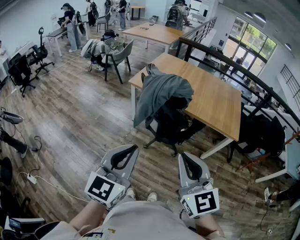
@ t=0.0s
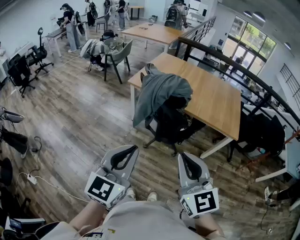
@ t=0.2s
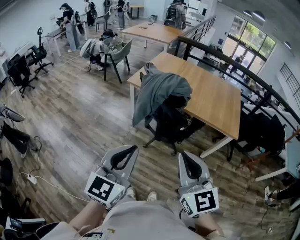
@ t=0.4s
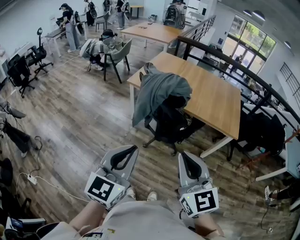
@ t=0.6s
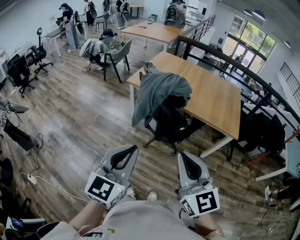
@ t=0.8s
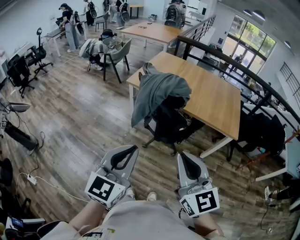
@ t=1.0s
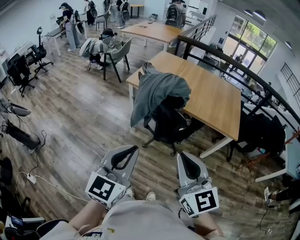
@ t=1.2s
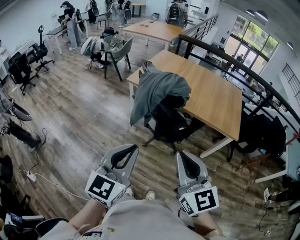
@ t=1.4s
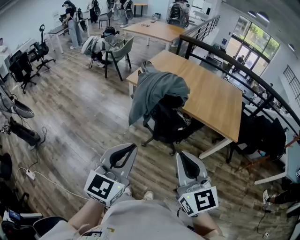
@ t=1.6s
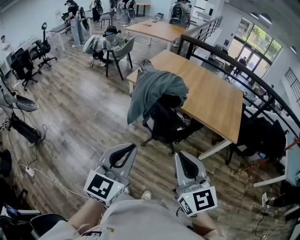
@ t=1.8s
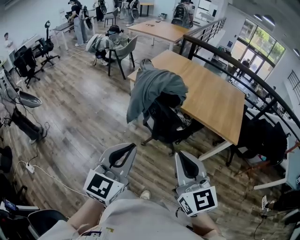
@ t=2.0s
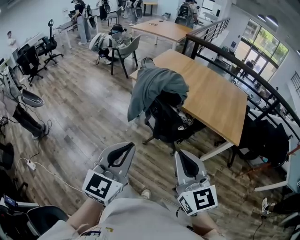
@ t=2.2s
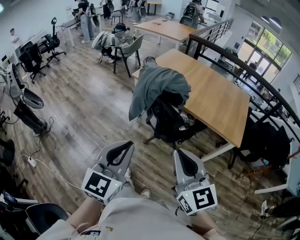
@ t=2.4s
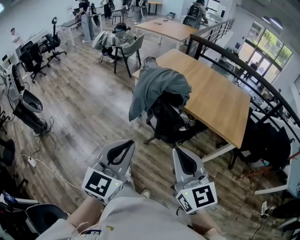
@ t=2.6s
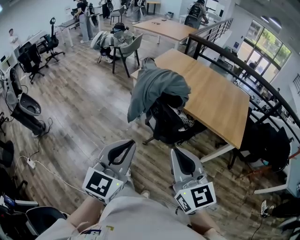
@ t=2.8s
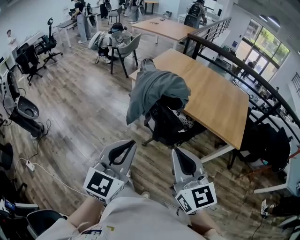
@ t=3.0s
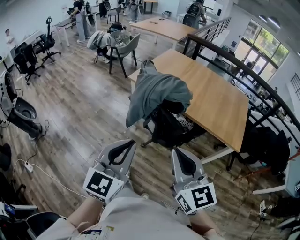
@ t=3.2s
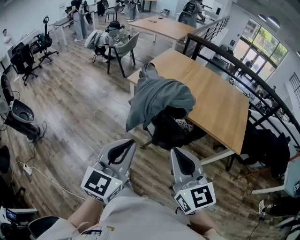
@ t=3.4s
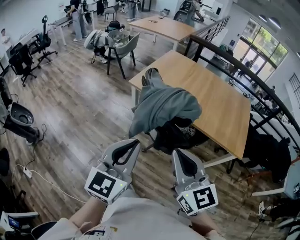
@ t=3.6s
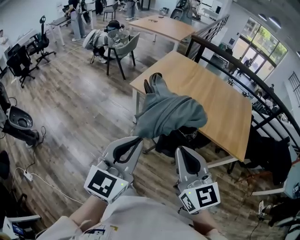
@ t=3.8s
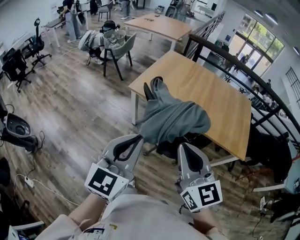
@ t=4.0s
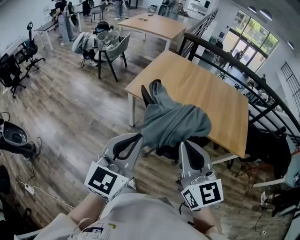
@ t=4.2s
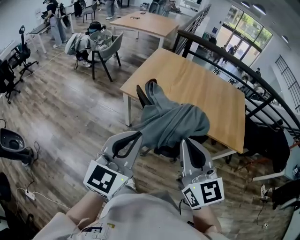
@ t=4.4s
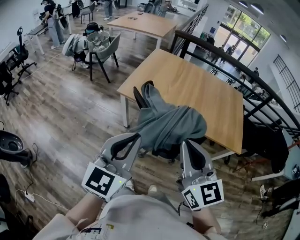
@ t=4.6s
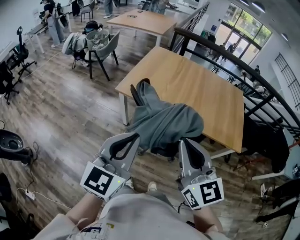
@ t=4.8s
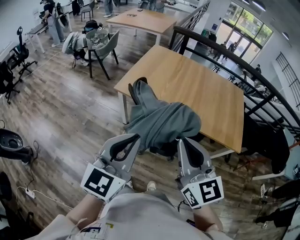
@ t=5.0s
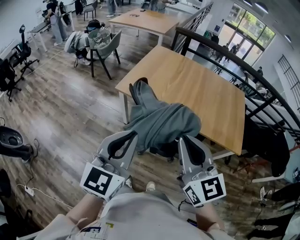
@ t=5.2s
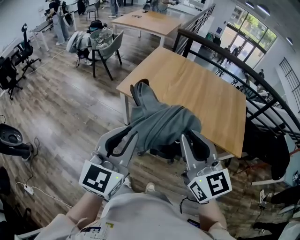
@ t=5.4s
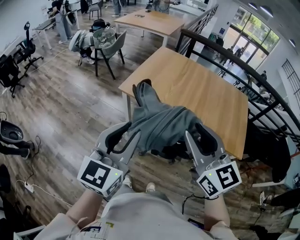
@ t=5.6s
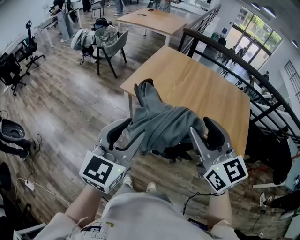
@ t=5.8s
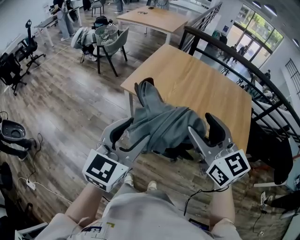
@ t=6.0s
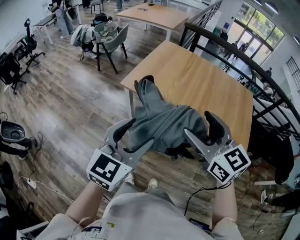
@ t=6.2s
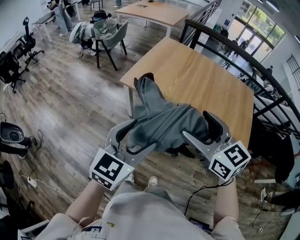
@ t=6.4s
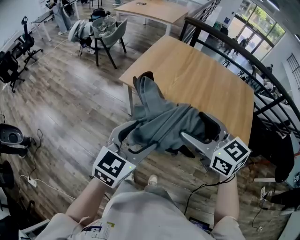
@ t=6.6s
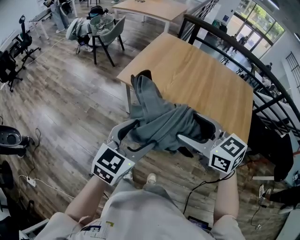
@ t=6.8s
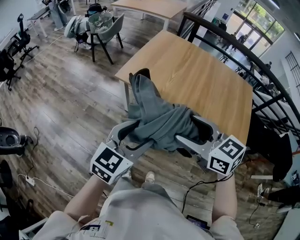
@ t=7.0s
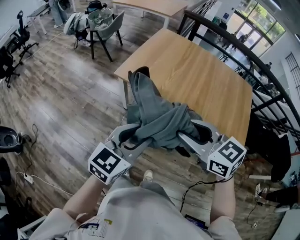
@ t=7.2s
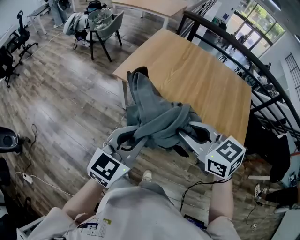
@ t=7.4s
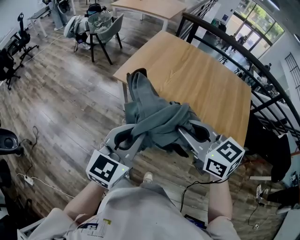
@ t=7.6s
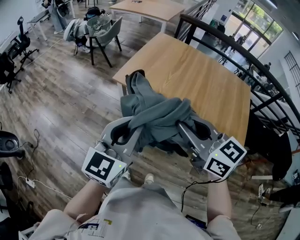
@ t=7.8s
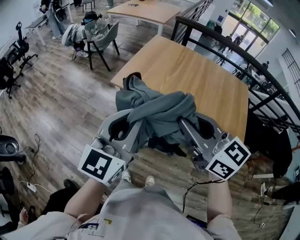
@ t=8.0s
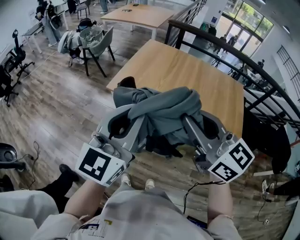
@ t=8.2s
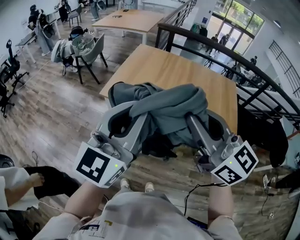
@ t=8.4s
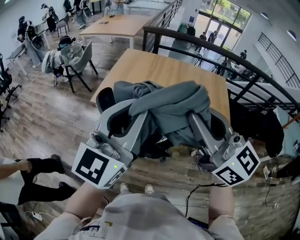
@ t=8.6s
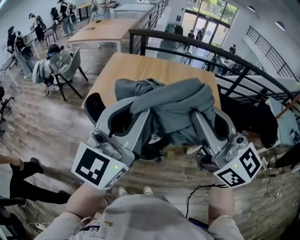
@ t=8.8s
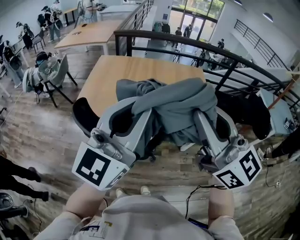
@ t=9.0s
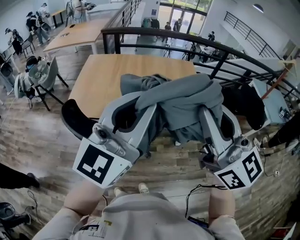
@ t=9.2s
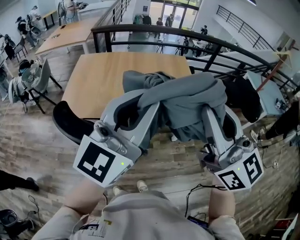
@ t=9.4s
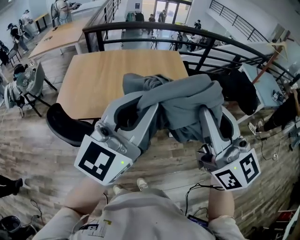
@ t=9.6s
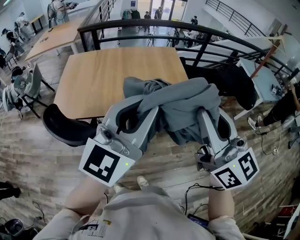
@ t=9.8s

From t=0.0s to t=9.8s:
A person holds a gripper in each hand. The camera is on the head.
From t=0.0s to t=1.4s: There are only small adjustments of the grippers.
From t=1.4s to t=2.8s: The left gripper heads to the right, covering about 5 cm; the right gripper moves some 5 cm.
From t=2.8s to t=4.2s: The two grippers go approximately 30 cm forward and to the left.
From t=4.2s to t=5.6s: The right gripper shifts roughly 10 cm forward and to the right, and opens its fingers; the left gripper heads forward, covering approximately 5 cm.
From t=5.6s to t=7.0s: The right gripper moves downward and forward, roughly 10 cm, changes its angle by approximately 30 degrees, and opens its fingers, while the left gripper moves downward, to the right and forward, some 15 cm, changes its angle by approximately 20 degrees, and opens its fingers.
From t=7.0s to t=8.4s: The left gripper travels upward by roughly 20 cm, turns by approximately 30 degrees, and closes up, while the right gripper goes some 15 cm upward and to the right, changes its angle by approximately 30 degrees, and closes its fingers.
From t=8.4s to t=9.8s: The left gripper ends up approximately 30 cm from where it was, and rotates some 30 degrees. The right gripper moves about 30 cm, and swivels some 40 degrees.

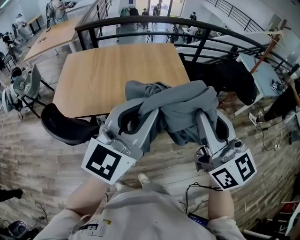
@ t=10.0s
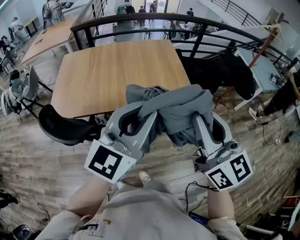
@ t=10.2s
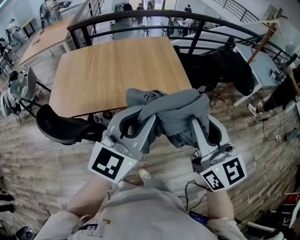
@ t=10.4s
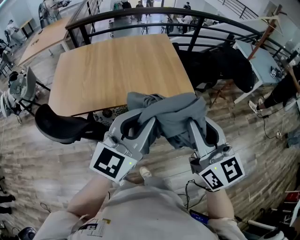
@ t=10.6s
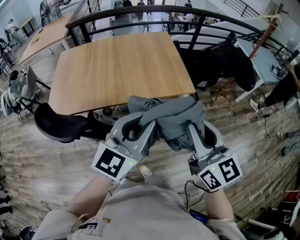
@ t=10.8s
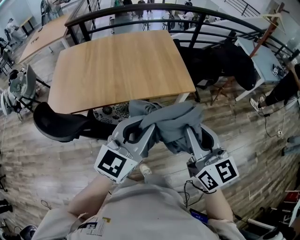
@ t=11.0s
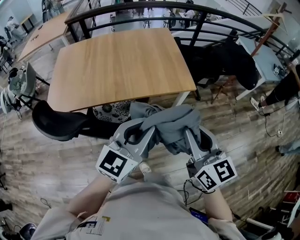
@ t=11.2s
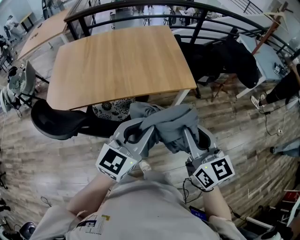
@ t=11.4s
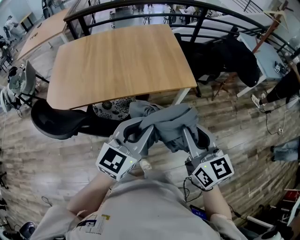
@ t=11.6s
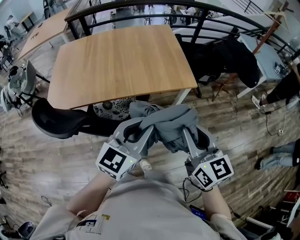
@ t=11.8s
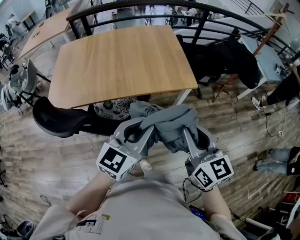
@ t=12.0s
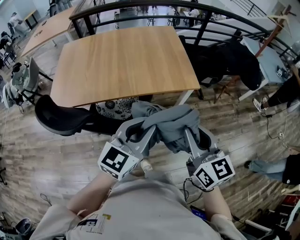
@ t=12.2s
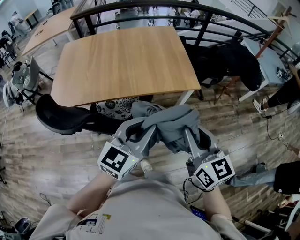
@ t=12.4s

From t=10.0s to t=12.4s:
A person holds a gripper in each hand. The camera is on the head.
From t=10.0s to t=11.2s: The two grippers go about 15 cm downward.
From t=11.2s to t=12.4s: There are only small adjustments of the grippers.

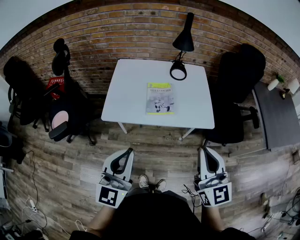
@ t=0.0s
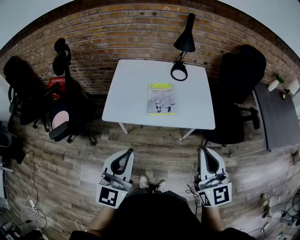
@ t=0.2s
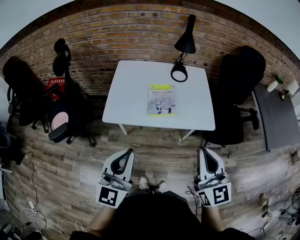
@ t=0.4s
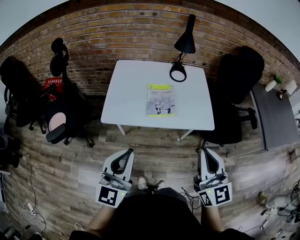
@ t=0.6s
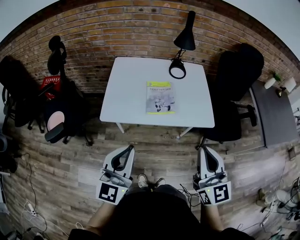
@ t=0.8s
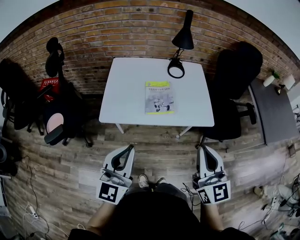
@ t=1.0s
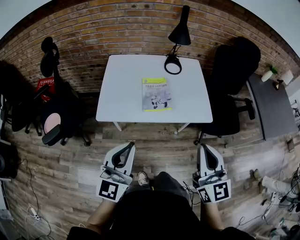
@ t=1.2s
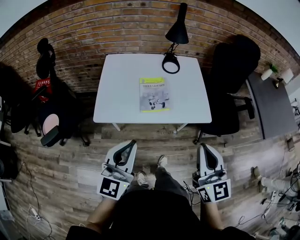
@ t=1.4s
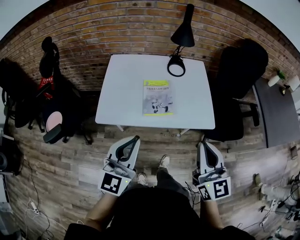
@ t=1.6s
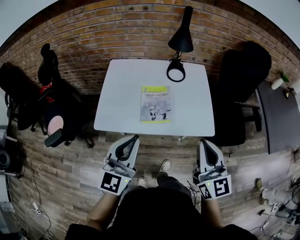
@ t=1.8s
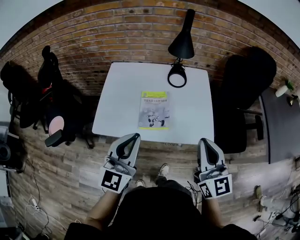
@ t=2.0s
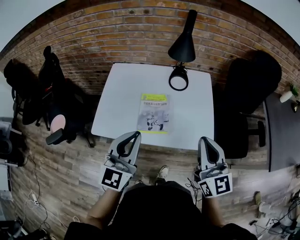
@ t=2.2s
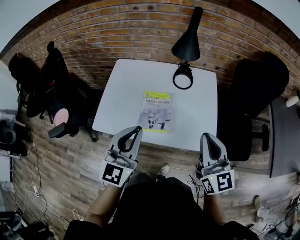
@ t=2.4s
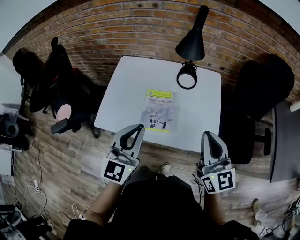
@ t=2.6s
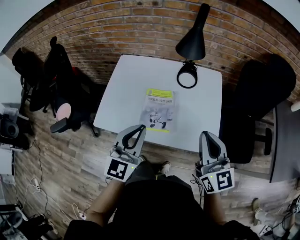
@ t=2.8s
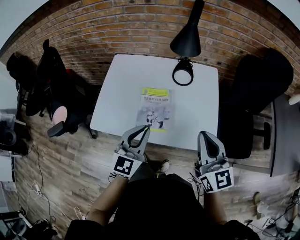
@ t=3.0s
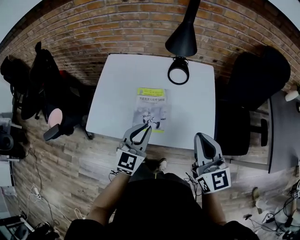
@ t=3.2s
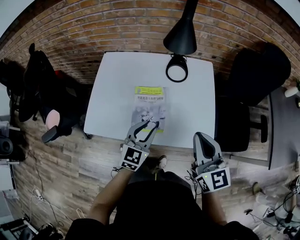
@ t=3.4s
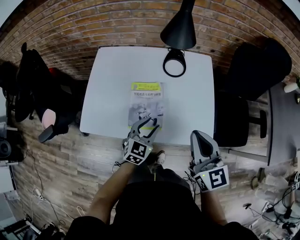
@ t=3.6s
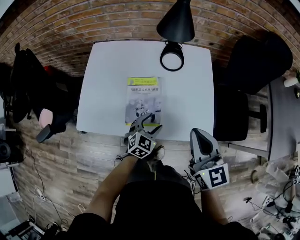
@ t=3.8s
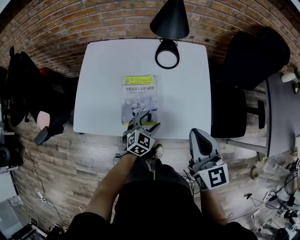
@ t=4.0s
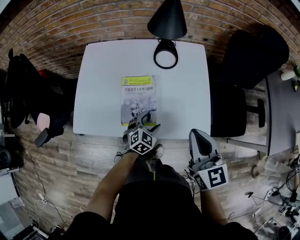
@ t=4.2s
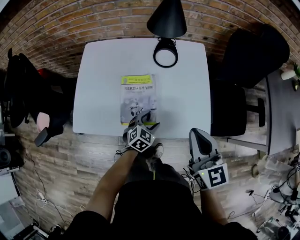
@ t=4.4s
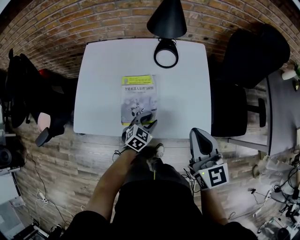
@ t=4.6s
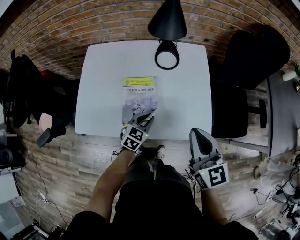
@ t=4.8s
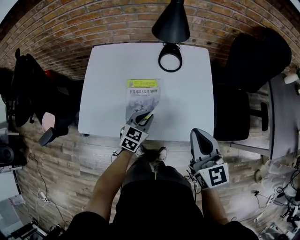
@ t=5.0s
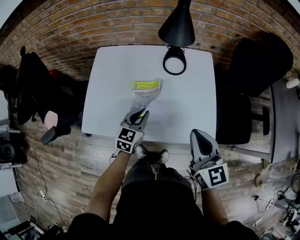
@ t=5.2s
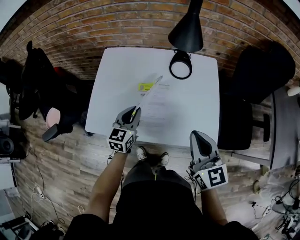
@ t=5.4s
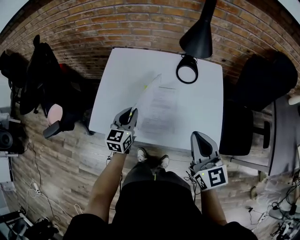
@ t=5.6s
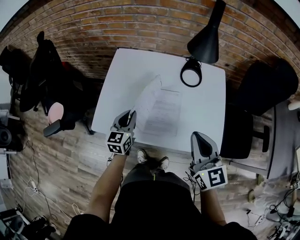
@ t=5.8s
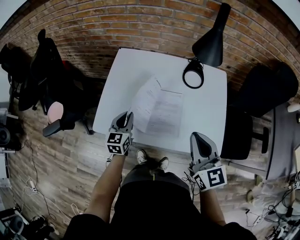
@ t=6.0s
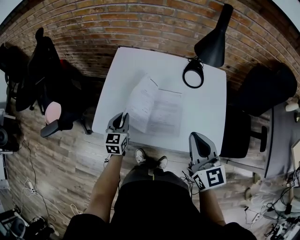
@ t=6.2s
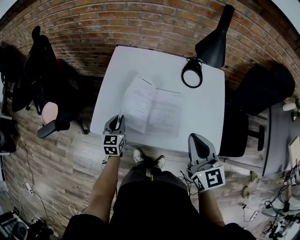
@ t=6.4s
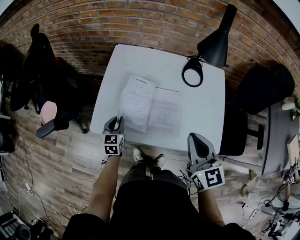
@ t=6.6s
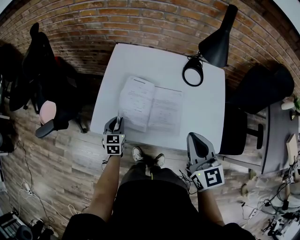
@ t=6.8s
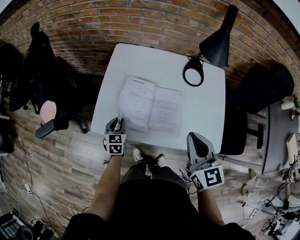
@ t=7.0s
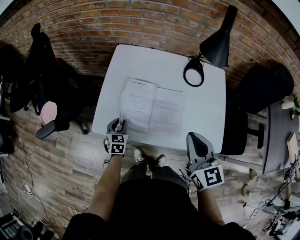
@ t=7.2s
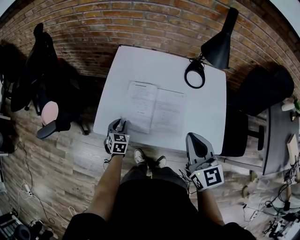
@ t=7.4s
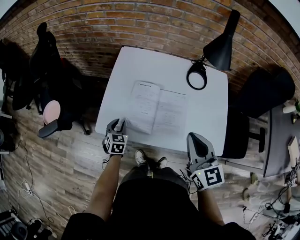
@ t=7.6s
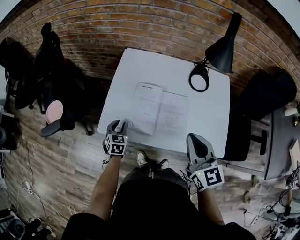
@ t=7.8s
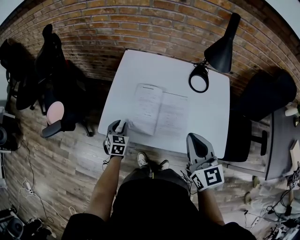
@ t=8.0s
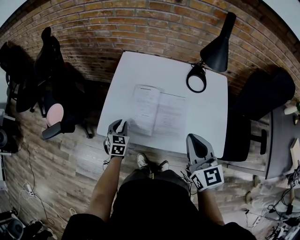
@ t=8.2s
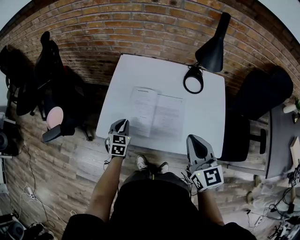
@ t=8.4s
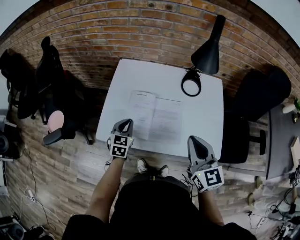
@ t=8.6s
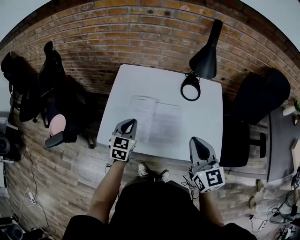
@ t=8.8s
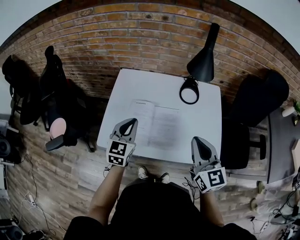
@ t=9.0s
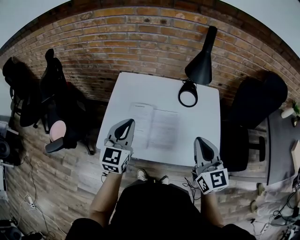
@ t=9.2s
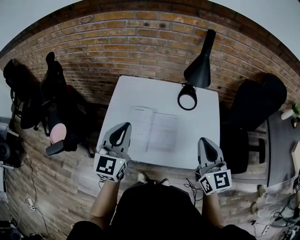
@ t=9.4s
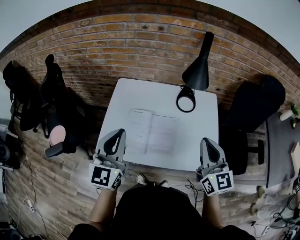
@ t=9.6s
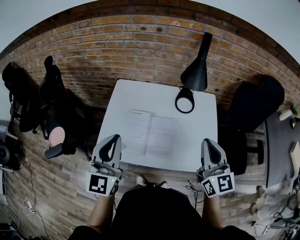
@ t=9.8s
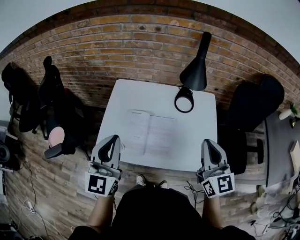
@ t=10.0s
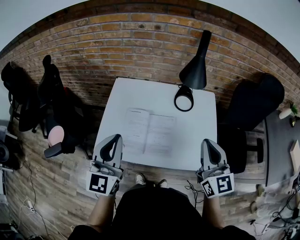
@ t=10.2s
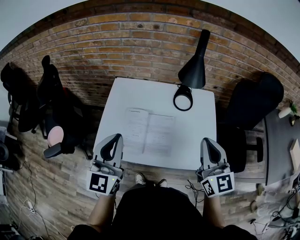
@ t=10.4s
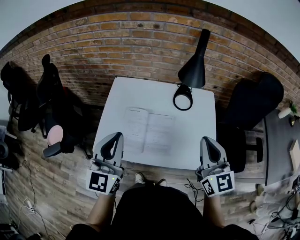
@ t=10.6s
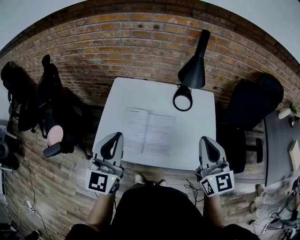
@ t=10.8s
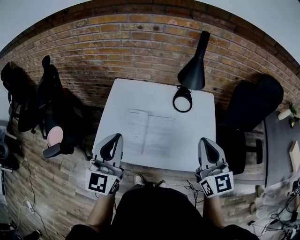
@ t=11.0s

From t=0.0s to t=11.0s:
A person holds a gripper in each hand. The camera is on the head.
From t=0.0s to t=1.6s: Both grippers move forward, roughly 10 cm.
From t=1.6s to t=3.2s: The left gripper goes about 25 cm forward, downward and to the right. The right gripper shifts about 20 cm forward.
From t=3.2s to t=4.8s: The right gripper travels downward by some 5 cm; the left gripper heads downward, covering roughly 20 cm, turns by about 30 degrees, and opens, then closes once more.
From t=4.8s to t=6.2s: The left gripper is displaced to the left by roughly 25 cm, and swivels about 40 degrees. The right gripper heads to the left, covering roughly 15 cm.
From t=6.2s to t=7.8s: The right gripper goes roughly 5 cm to the left. Meanwhile the left gripper is displaced downward and to the left by roughly 10 cm, and changes its angle by approximately 20 degrees.
From t=7.8s to t=9.4s: The right gripper is displaced to the right and upward by approximately 10 cm, while the left gripper travels upward by some 35 cm, and tips its fingers upward by about 40 degrees.
From t=9.4s to t=11.0s: The left gripper shifts by approximately 5 cm.
